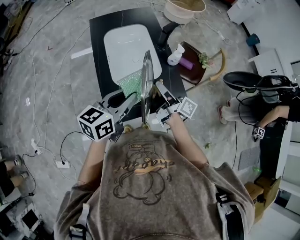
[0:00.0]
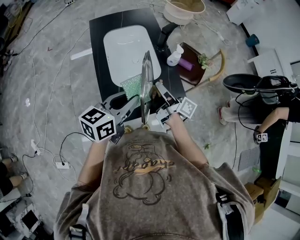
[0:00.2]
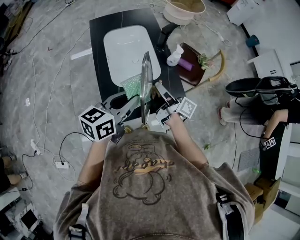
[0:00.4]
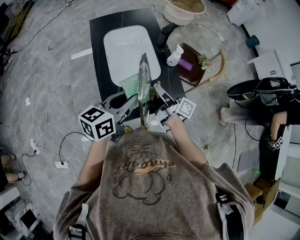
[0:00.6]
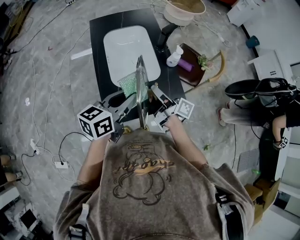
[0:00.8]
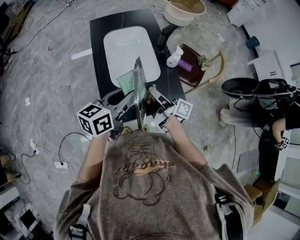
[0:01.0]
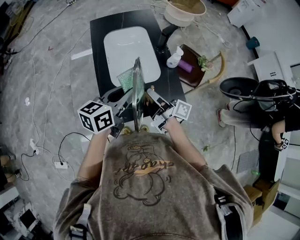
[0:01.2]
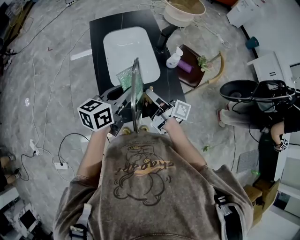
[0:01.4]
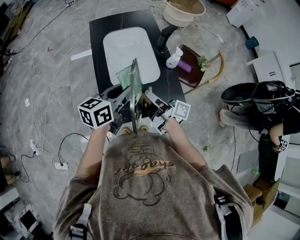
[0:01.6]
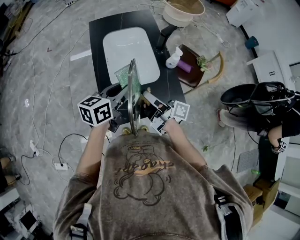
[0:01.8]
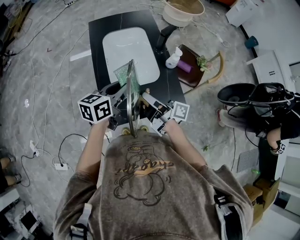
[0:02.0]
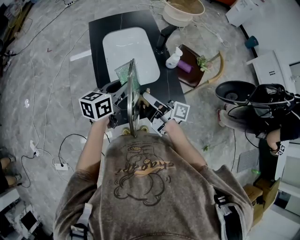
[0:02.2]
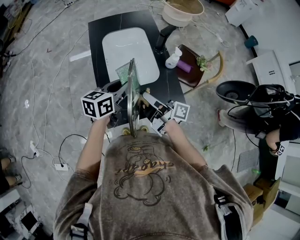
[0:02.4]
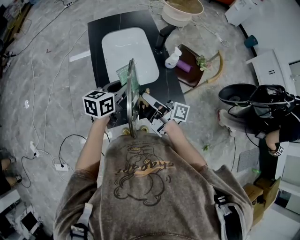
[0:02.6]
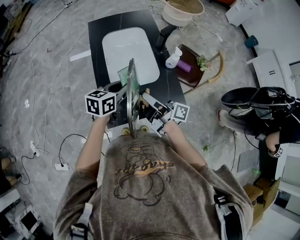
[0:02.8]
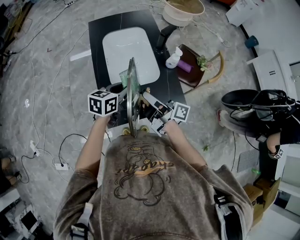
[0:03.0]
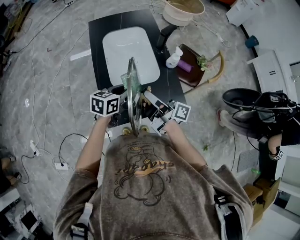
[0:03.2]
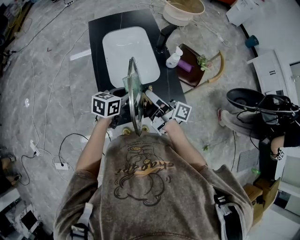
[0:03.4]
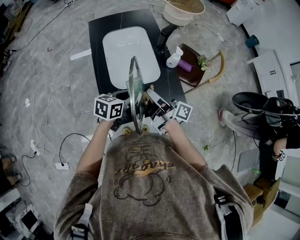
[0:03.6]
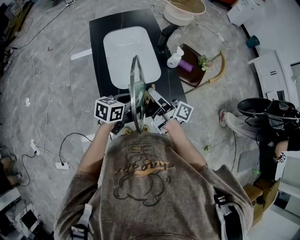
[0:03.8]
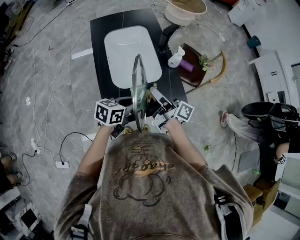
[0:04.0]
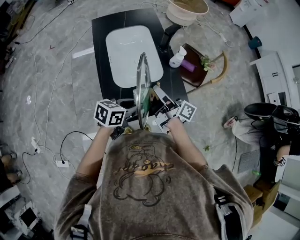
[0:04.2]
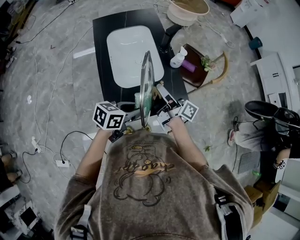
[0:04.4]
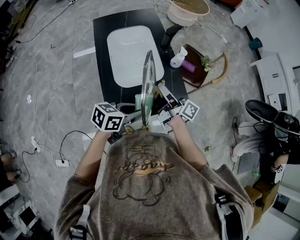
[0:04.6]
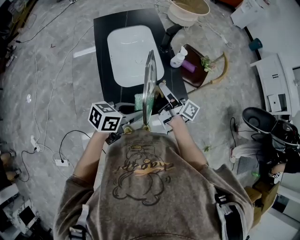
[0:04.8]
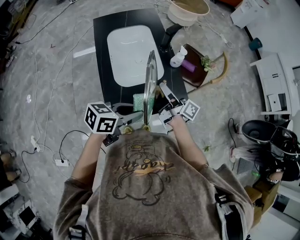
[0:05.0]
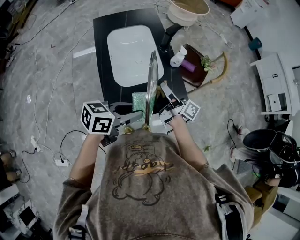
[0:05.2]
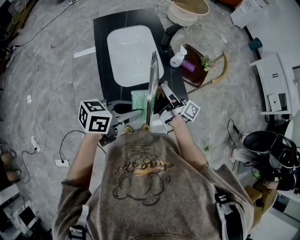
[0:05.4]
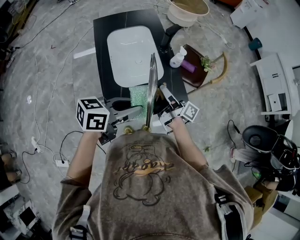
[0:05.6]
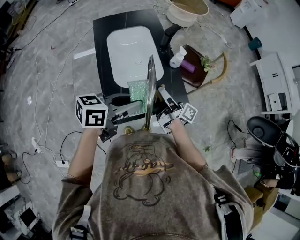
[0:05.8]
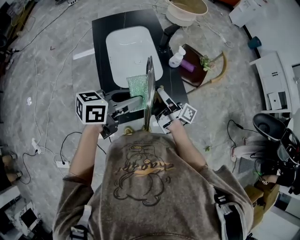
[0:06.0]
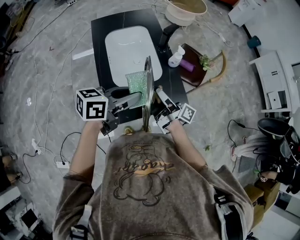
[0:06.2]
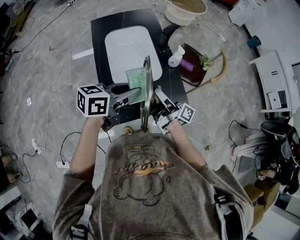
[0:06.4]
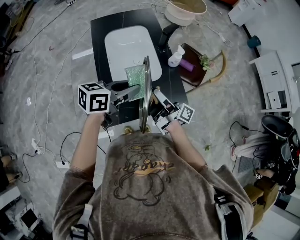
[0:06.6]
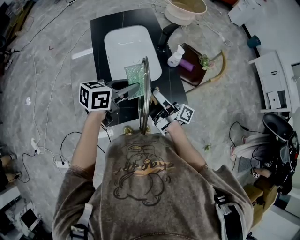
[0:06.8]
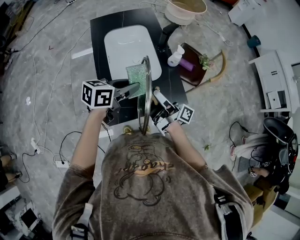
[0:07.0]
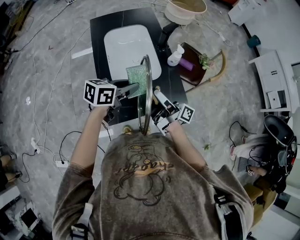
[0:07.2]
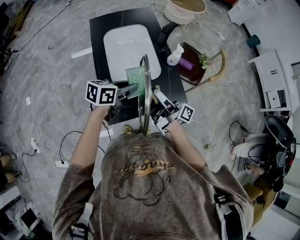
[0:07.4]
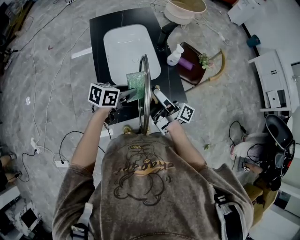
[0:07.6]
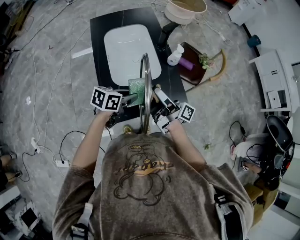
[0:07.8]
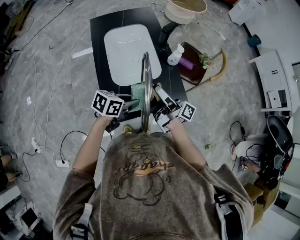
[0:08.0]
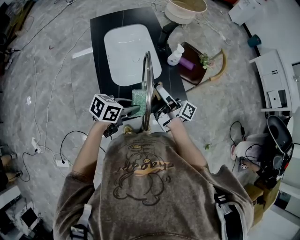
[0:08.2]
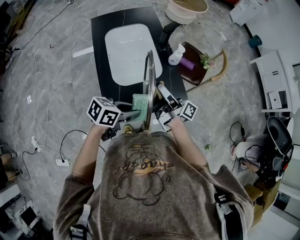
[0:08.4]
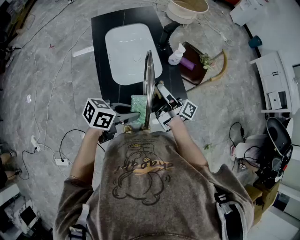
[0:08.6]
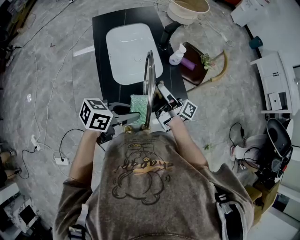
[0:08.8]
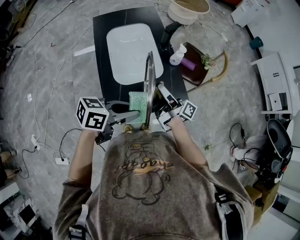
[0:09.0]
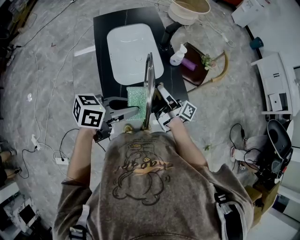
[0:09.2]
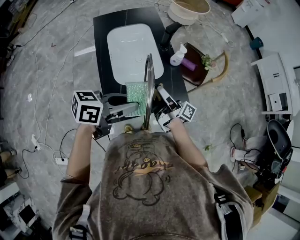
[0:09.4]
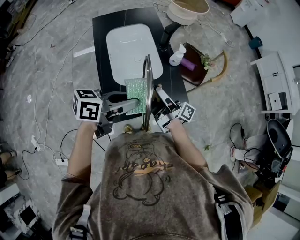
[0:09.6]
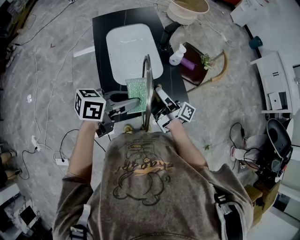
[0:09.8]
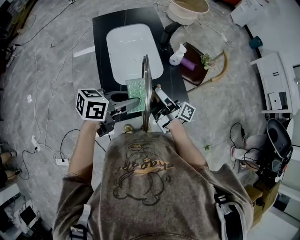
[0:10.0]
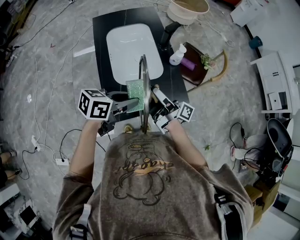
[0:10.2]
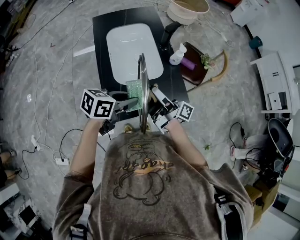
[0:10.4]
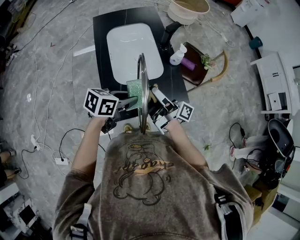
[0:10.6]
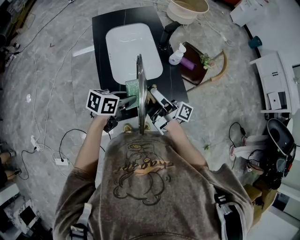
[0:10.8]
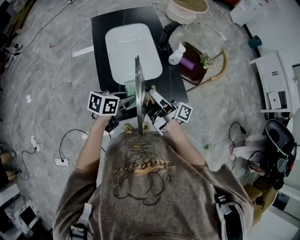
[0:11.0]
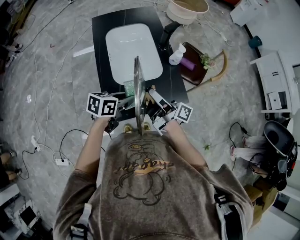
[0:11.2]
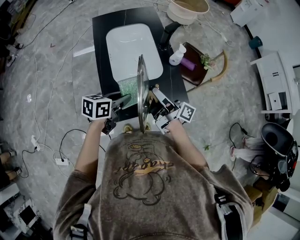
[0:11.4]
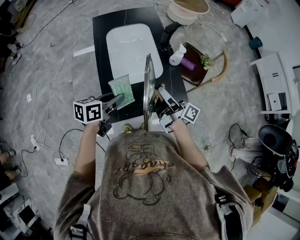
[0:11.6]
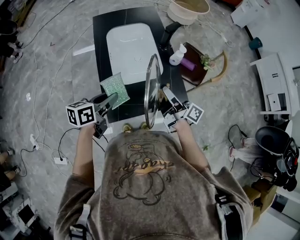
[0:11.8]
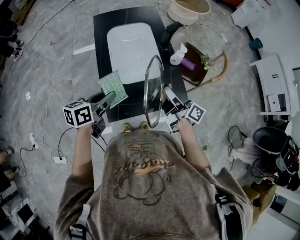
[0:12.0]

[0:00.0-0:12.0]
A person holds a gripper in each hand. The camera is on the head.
0:00.0 to 0:01.6: The left gripper shifts by roughly 5 cm.
0:01.6 to 0:03.0: The left gripper moves downward, approximately 10 cm.
0:03.0 to 0:04.4: The left gripper goes about 10 cm backward, and rotates some 20 degrees.
0:04.4 to 0:06.0: The left gripper moves upward, roughly 10 cm.
0:06.0 to 0:07.6: The left gripper travels downward by about 15 cm.
0:07.6 to 0:09.0: The left gripper moves backward and upward, about 15 cm.
0:09.0 to 0:10.4: The left gripper changes place by some 5 cm.
0:10.4 to 0:12.0: The left gripper heads to the left, covering roughly 10 cm, and changes its angle by some 30 degrees. Meanwhile the right gripper travels to the right by approximately 5 cm, and changes its angle by some 20 degrees.

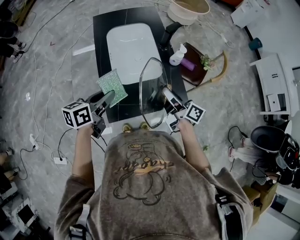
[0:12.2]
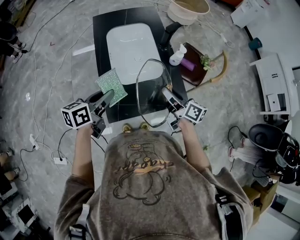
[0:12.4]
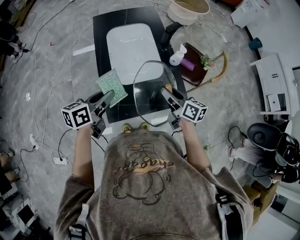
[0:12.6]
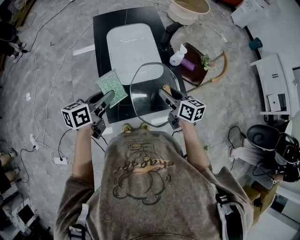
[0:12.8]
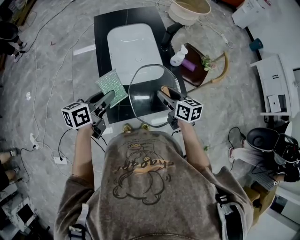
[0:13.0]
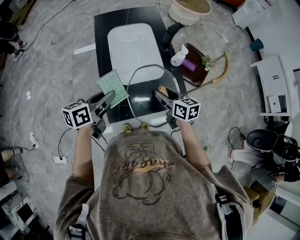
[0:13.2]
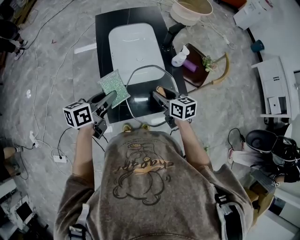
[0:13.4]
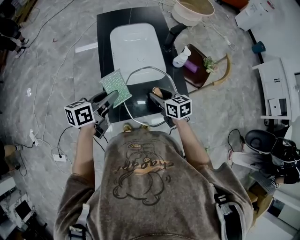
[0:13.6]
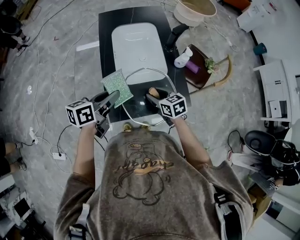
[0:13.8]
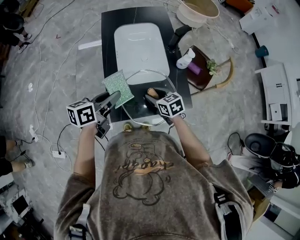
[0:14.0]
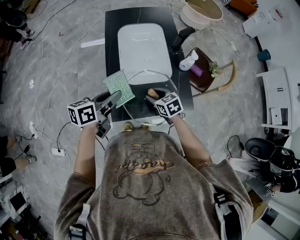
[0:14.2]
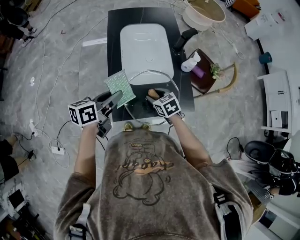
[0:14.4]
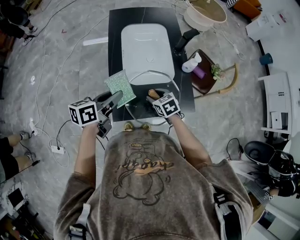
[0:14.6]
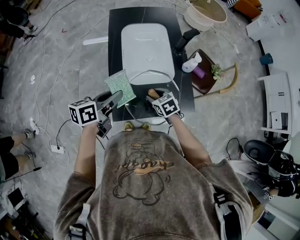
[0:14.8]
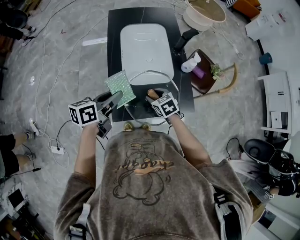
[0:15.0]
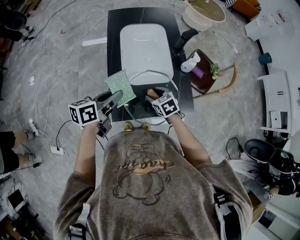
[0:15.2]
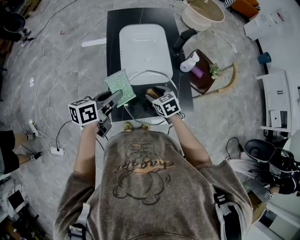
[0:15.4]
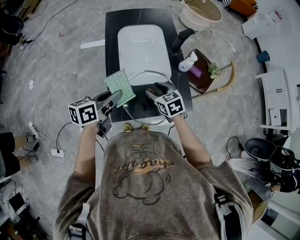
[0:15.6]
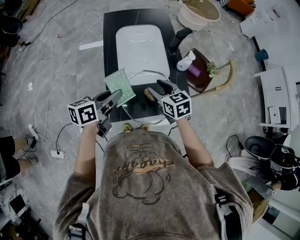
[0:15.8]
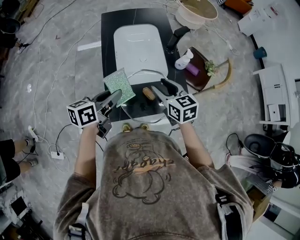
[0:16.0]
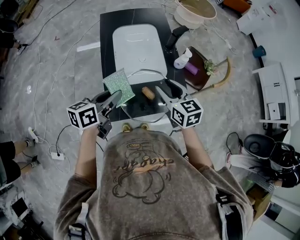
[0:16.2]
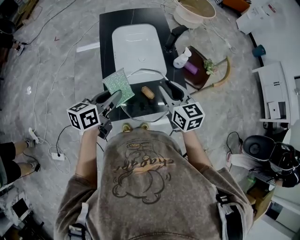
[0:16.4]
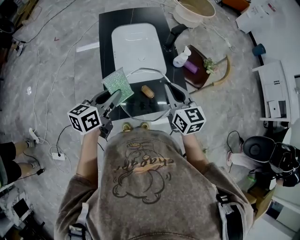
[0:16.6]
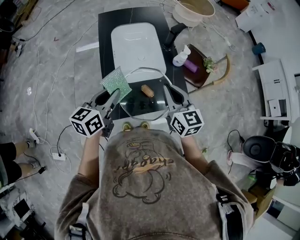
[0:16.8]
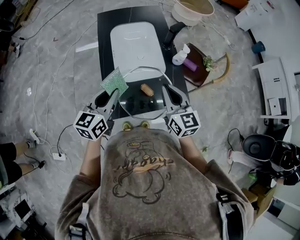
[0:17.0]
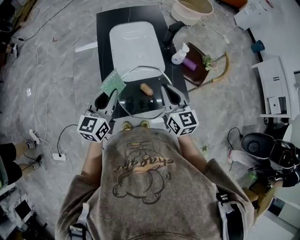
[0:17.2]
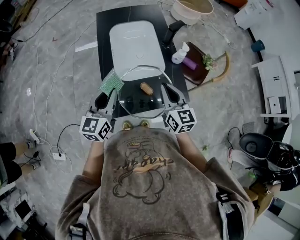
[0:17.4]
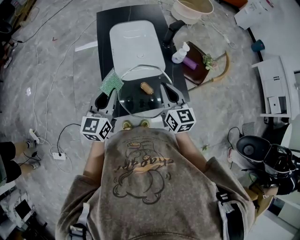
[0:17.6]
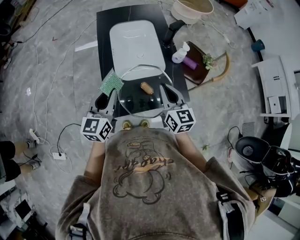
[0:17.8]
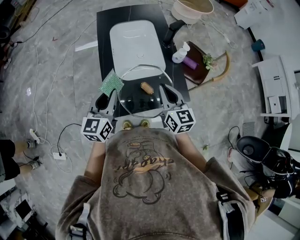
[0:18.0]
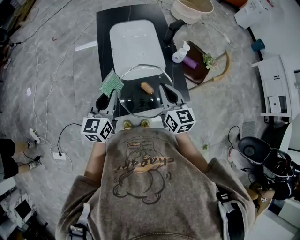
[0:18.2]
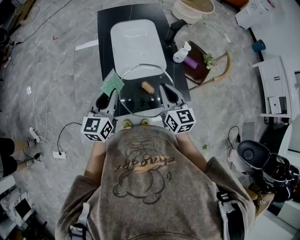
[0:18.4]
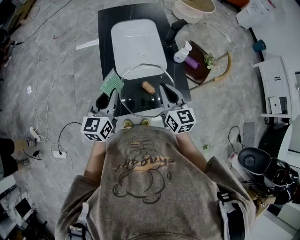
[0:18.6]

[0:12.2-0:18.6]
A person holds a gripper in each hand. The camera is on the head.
0:12.2 to 0:13.8: The right gripper moves downward and to the left, roughly 15 cm, and tips its fingers downward by roughly 40 degrees.
0:13.8 to 0:15.4: The grippers make only small movements.
0:15.4 to 0:17.0: The right gripper travels upward and to the right by roughly 20 cm, points its fingers about 40 degrees further upward, and closes. The left gripper rotates approximately 30 degrees.
0:17.0 to 0:18.6: The grippers make only small movements.

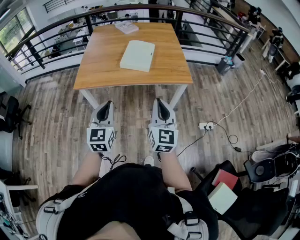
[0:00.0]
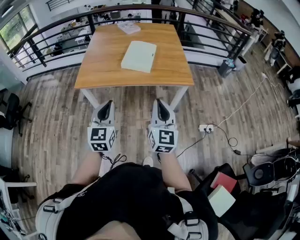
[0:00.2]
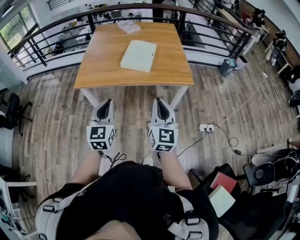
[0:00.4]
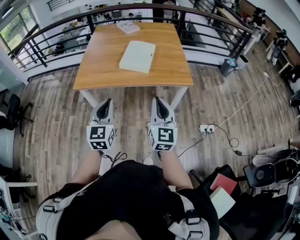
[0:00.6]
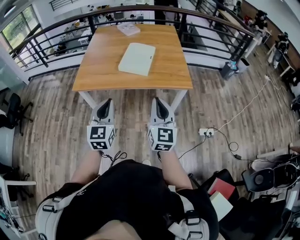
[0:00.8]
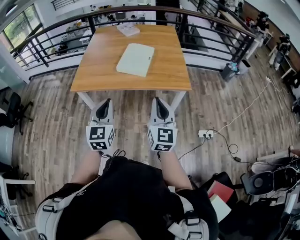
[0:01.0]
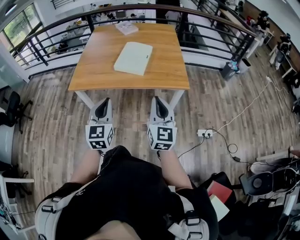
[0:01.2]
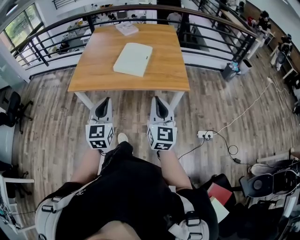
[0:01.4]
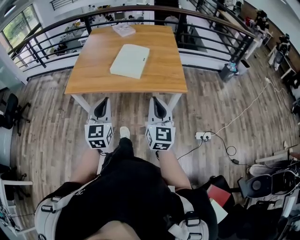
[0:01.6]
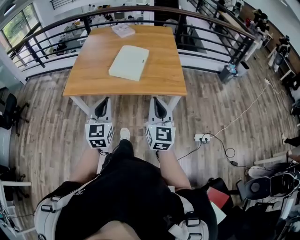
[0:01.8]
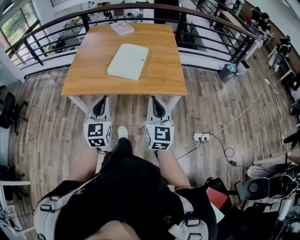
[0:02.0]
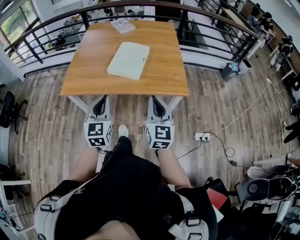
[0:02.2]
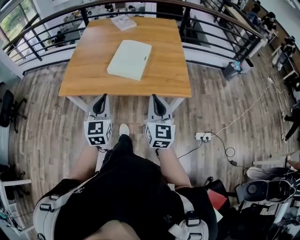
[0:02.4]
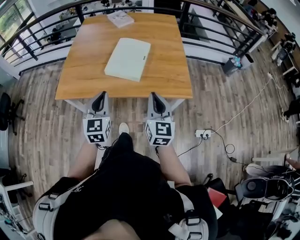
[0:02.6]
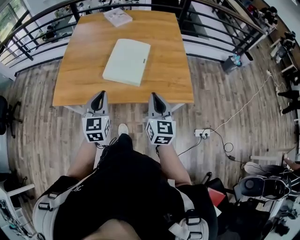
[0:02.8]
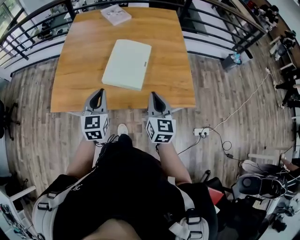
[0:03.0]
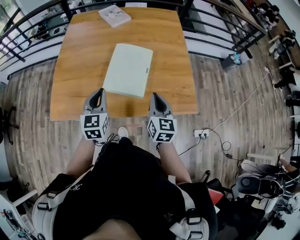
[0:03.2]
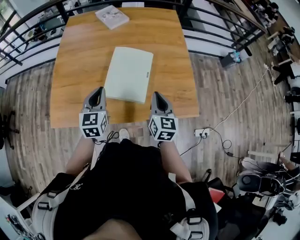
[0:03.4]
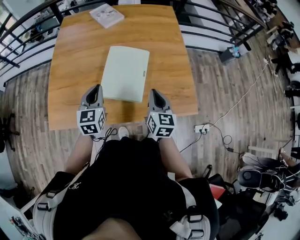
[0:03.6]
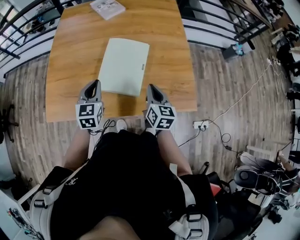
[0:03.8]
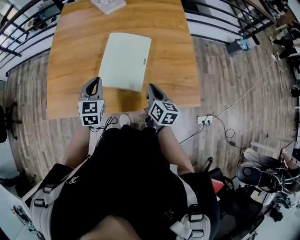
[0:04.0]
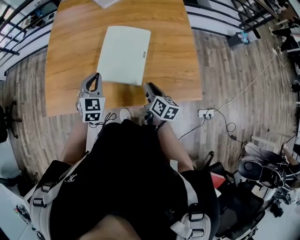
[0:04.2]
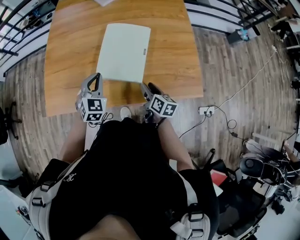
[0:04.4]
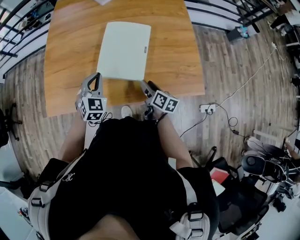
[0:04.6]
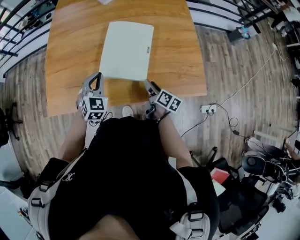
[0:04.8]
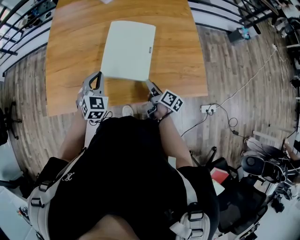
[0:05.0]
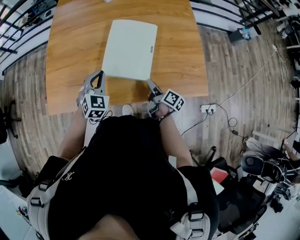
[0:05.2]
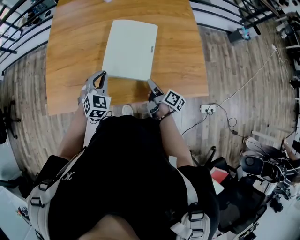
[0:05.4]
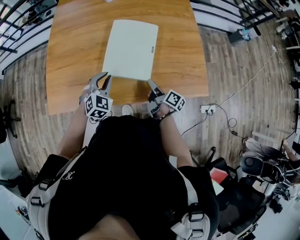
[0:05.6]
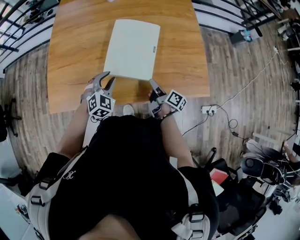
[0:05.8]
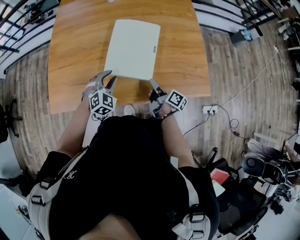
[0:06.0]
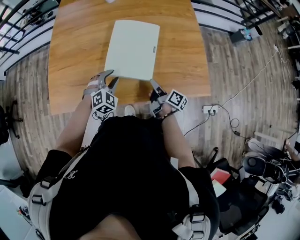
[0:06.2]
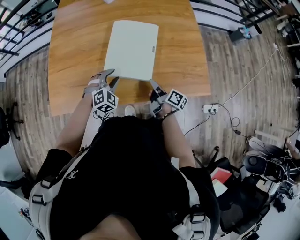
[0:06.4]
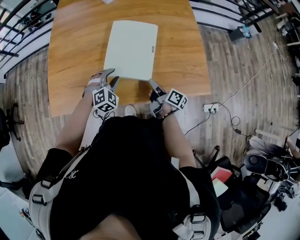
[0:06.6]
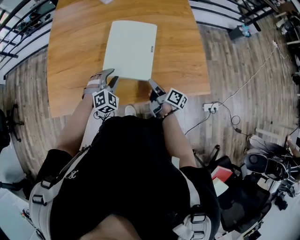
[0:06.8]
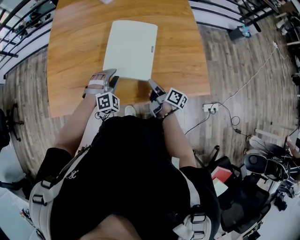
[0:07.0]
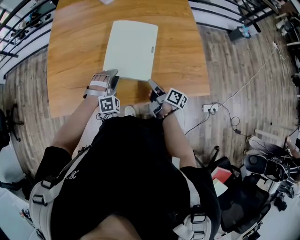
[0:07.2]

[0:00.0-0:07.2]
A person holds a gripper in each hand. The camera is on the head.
0:00.0 to 0:01.4: The two grippers go approximately 10 cm to the right and forward.
0:01.4 to 0:02.8: Both grippers travel together forward, approximately 25 cm.
0:02.8 to 0:04.4: The right gripper travels downward and forward by roughly 25 cm, changes its angle by about 40 degrees, and opens up. Meanwhile the left gripper shifts about 20 cm forward and downward, and rotates roughly 30 degrees.
0:04.4 to 0:05.8: The right gripper turns by roughly 30 degrees. The left gripper shifts some 5 cm downward, changes its angle by about 20 degrees, and opens up.
0:05.8 to 0:07.2: The left gripper rotates approximately 40 degrees.
